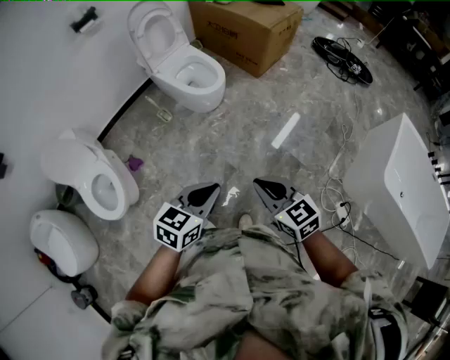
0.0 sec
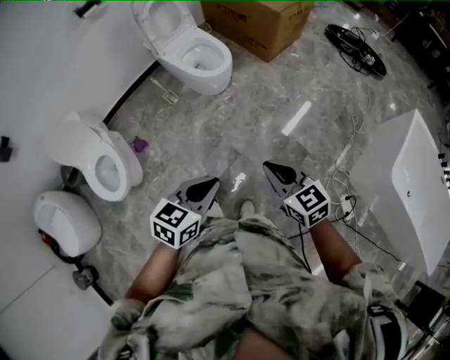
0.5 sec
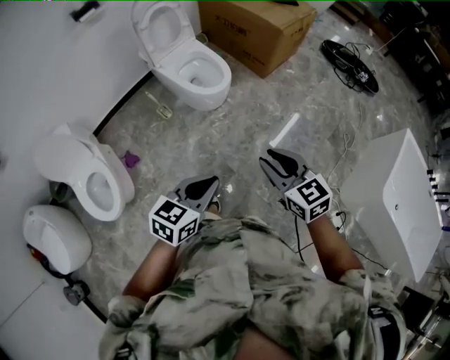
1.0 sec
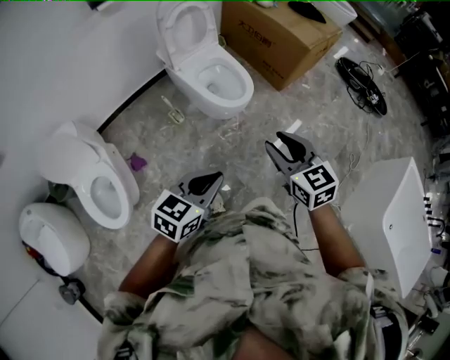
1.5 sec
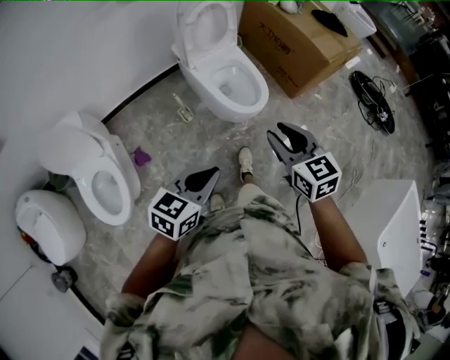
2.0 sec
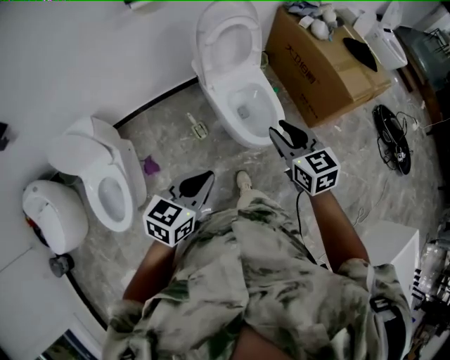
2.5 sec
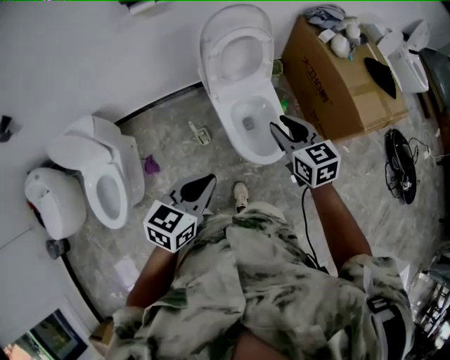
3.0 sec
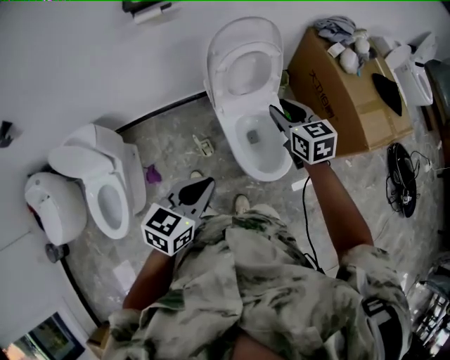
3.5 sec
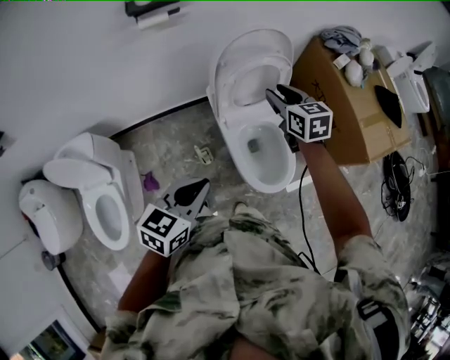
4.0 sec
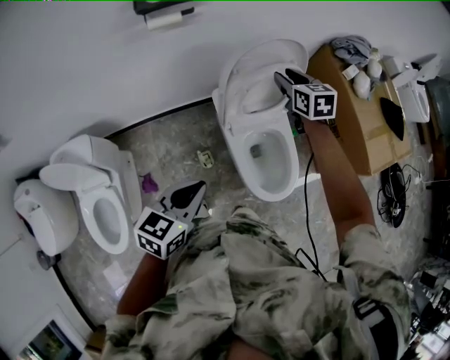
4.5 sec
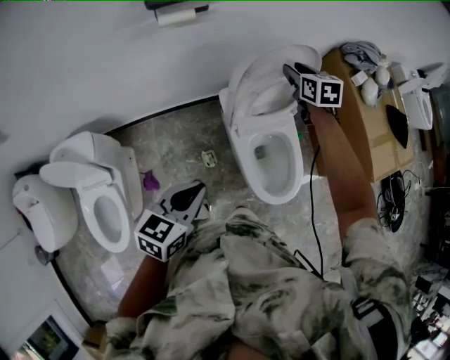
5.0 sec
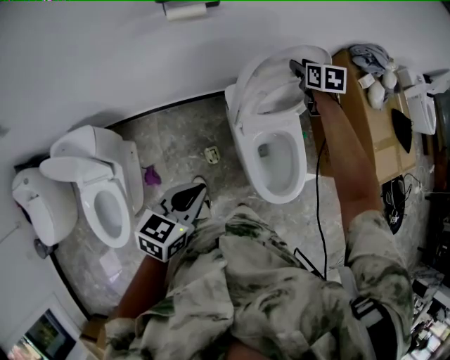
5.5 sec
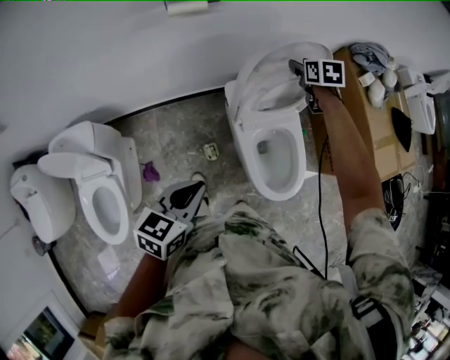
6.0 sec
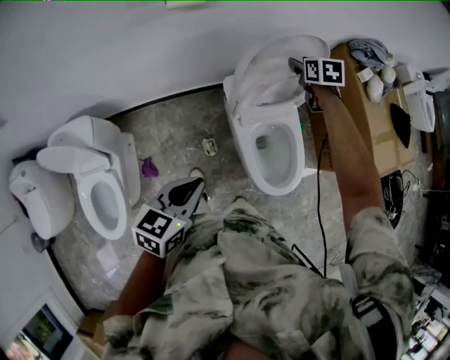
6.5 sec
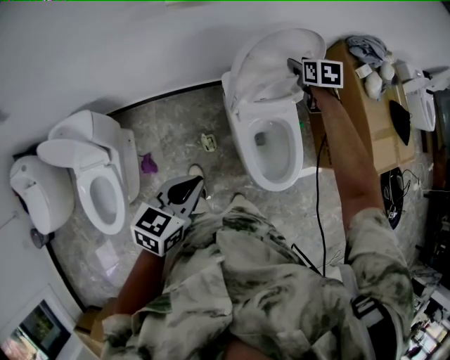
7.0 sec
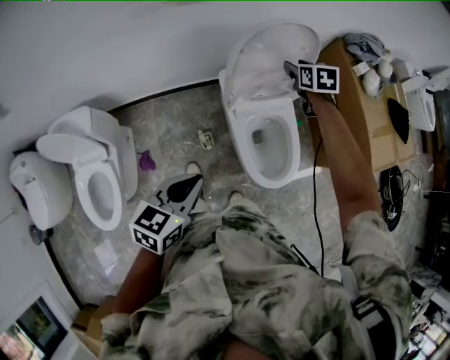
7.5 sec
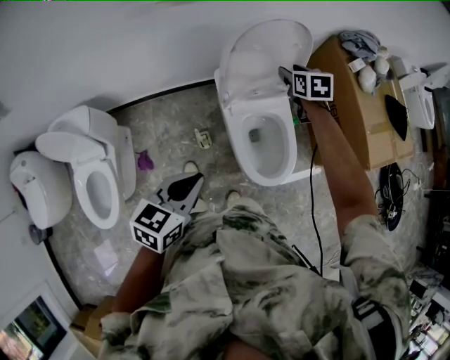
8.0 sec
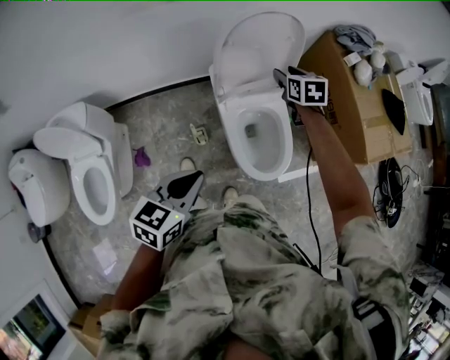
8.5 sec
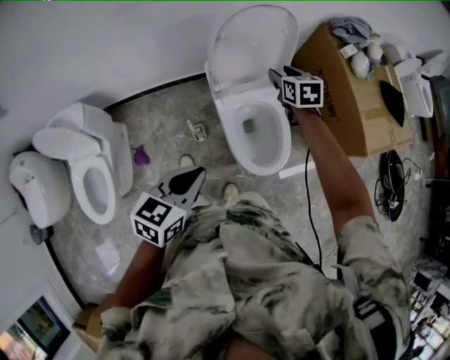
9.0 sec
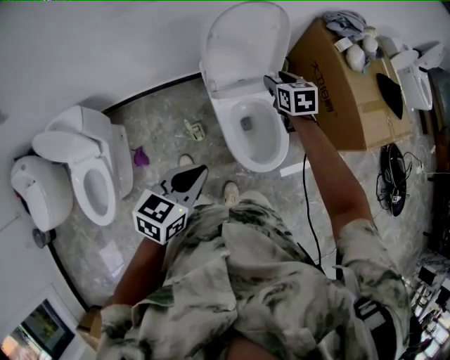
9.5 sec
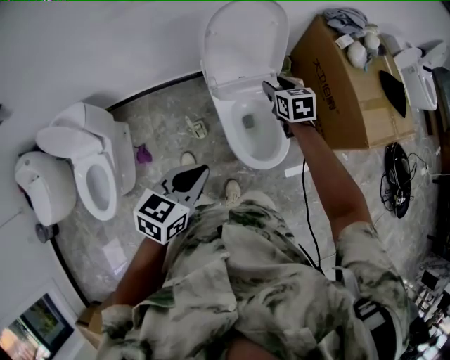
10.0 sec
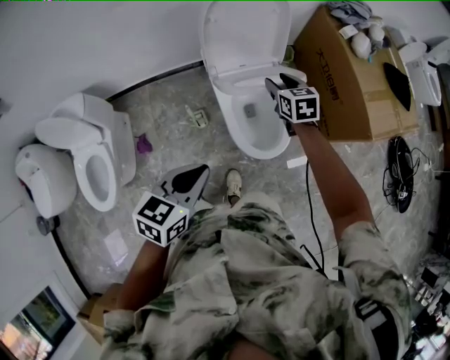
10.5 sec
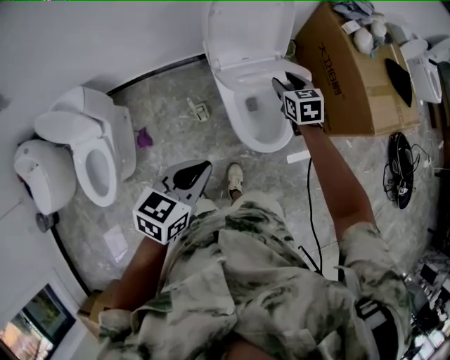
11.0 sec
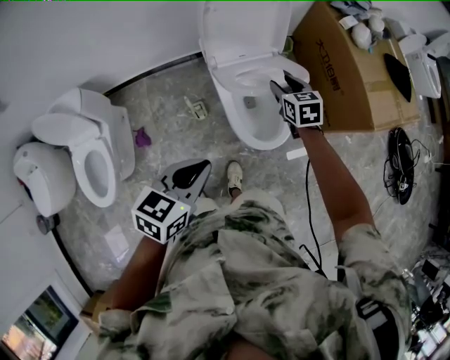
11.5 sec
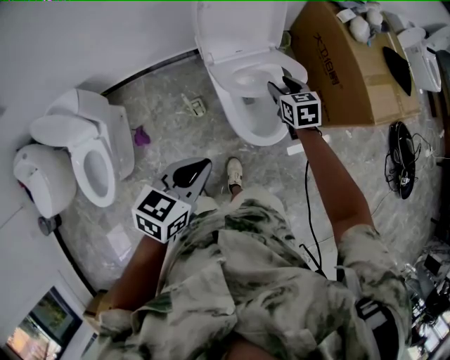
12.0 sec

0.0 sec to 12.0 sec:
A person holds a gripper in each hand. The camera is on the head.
0.0 sec to 2.0 sec: Both grippers move forward and to the left, approximately 40 cm. The right gripper opens its fingers.
2.0 sec to 4.0 sec: Both grippers are carried forward, roughly 50 cm. The left gripper turns by some 20 degrees.
4.0 sec to 6.0 sec: The right gripper heads forward and downward, covering some 25 cm. The left gripper travels to the left, forward and downward by some 15 cm.
6.0 sec to 8.0 sec: The right gripper goes roughly 15 cm backward and to the right; the left gripper travels to the right and backward by approximately 10 cm.
8.0 sec to 10.0 sec: The right gripper heads backward and to the right, covering approximately 15 cm, while the left gripper travels to the right by roughly 10 cm.
10.0 sec to 12.0 sec: The right gripper heads backward and downward, covering roughly 10 cm.

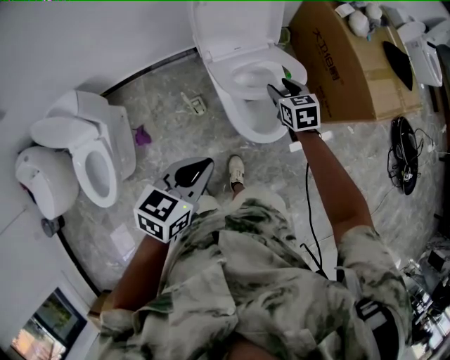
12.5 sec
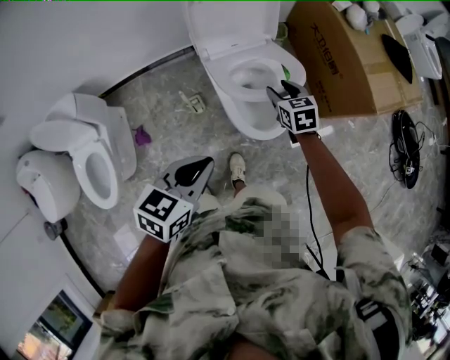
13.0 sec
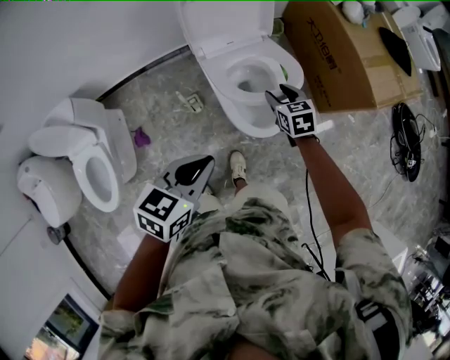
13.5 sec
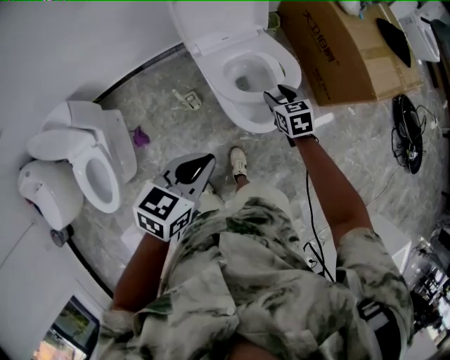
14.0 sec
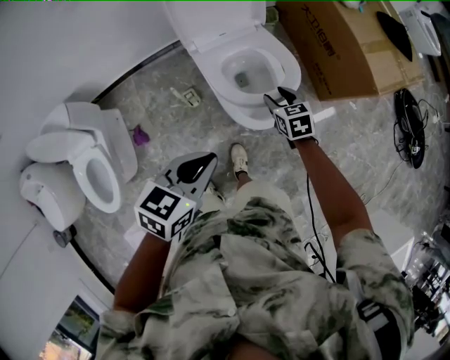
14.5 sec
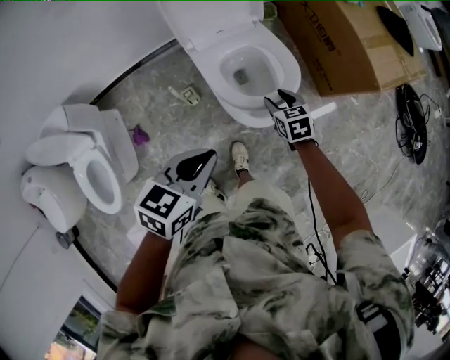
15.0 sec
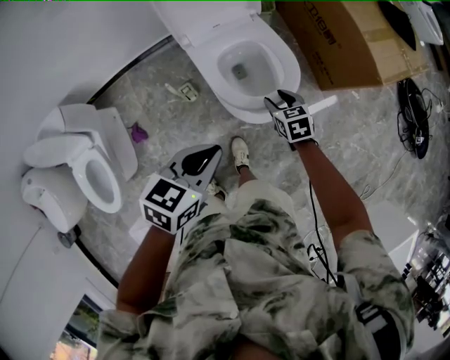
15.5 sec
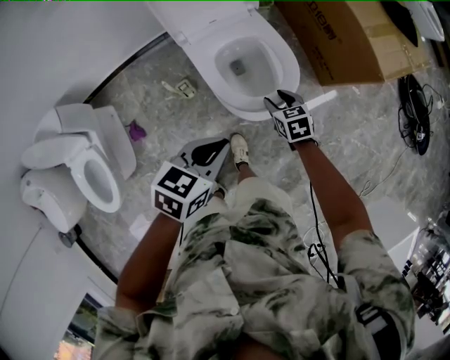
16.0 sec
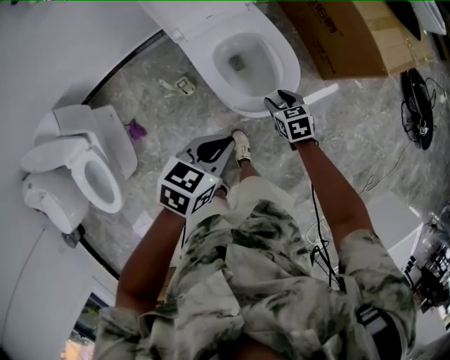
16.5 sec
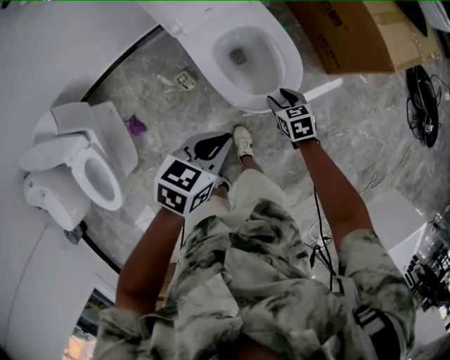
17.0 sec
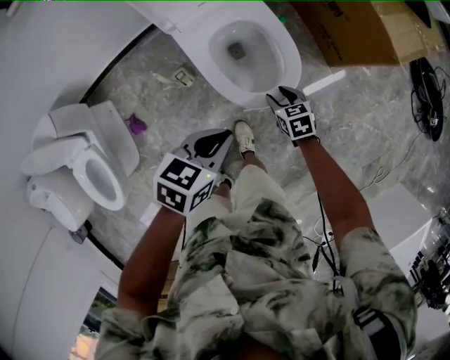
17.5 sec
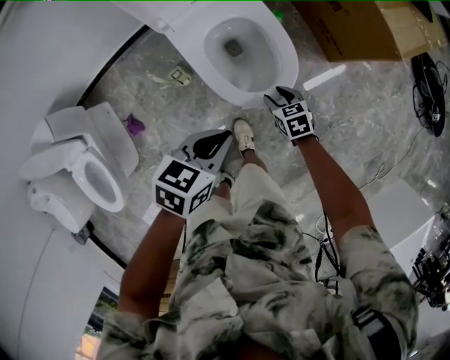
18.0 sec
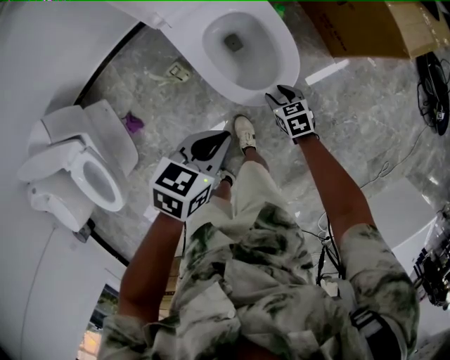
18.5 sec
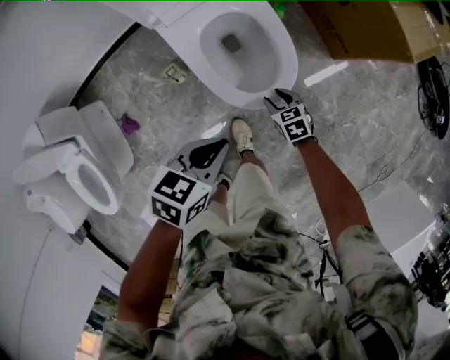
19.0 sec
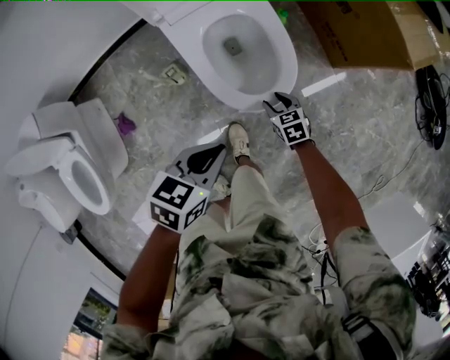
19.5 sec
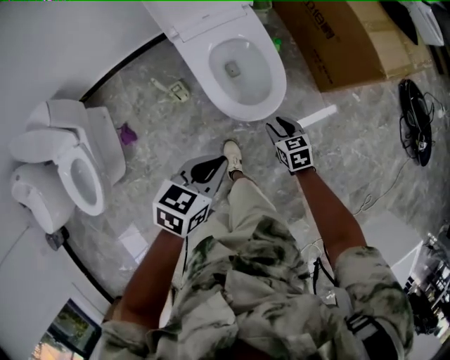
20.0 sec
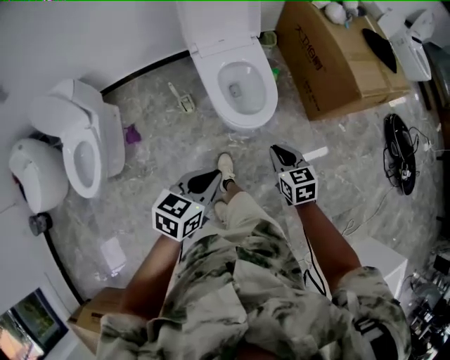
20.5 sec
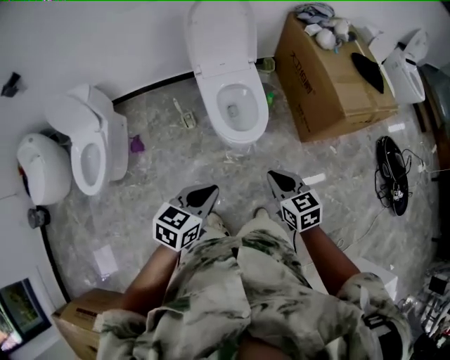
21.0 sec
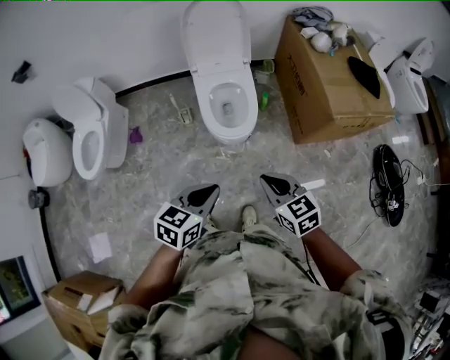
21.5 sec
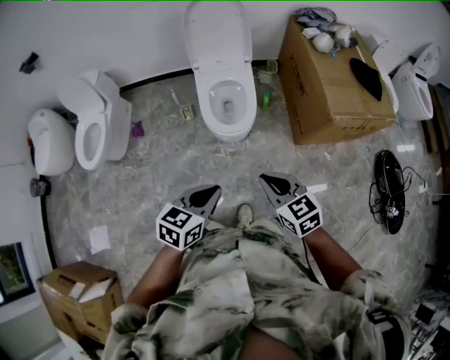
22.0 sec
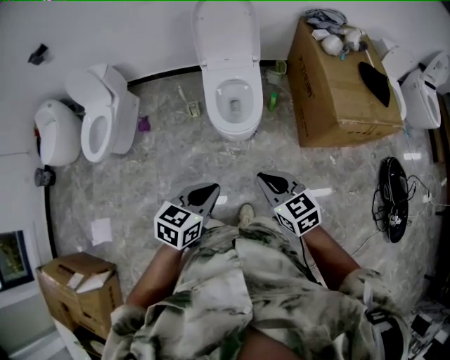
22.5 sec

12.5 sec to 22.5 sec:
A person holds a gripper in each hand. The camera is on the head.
12.5 sec to 14.5 sec: The right gripper moves downward and backward, some 10 cm.
14.5 sec to 16.5 sec: The right gripper shifts approximately 10 cm downward, while the left gripper is displaced downward and to the right by roughly 10 cm.
16.5 sec to 18.5 sec: The left gripper is displaced downward by about 10 cm. Meanwhile the right gripper shifts about 15 cm downward.
18.5 sec to 20.5 sec: The left gripper travels backward and upward by roughly 30 cm, and swivels approximately 20 degrees. The right gripper shifts about 35 cm upward and backward, and closes its fingers.
20.5 sec to 22.5 sec: The left gripper shifts some 30 cm to the right, backward and upward, while the right gripper travels upward, backward and to the right by some 30 cm, and changes its angle by about 30 degrees.

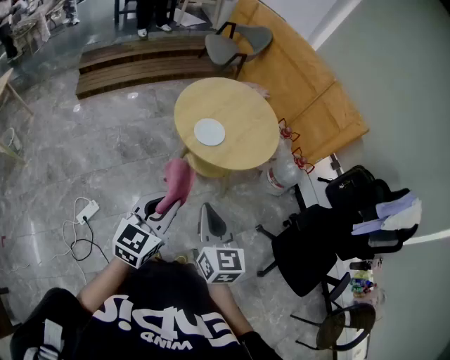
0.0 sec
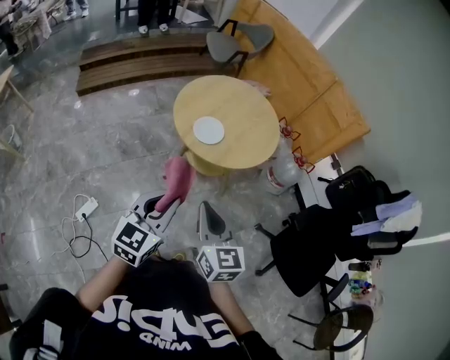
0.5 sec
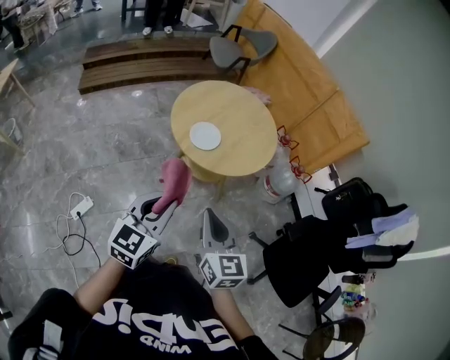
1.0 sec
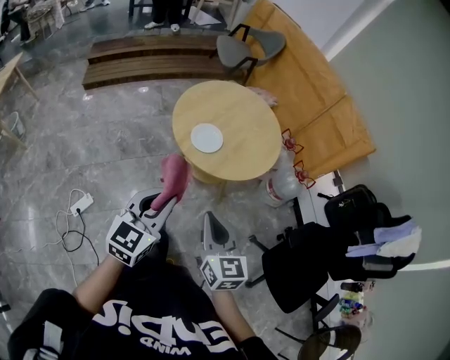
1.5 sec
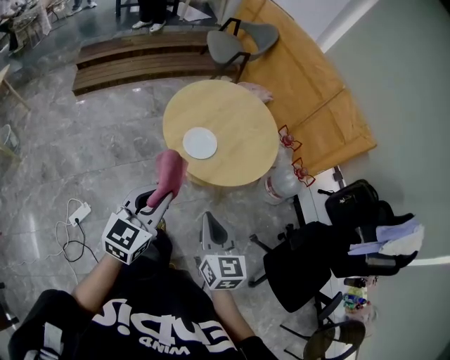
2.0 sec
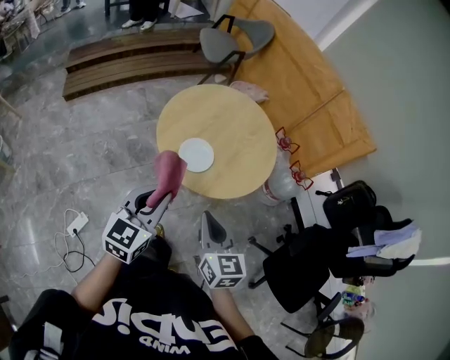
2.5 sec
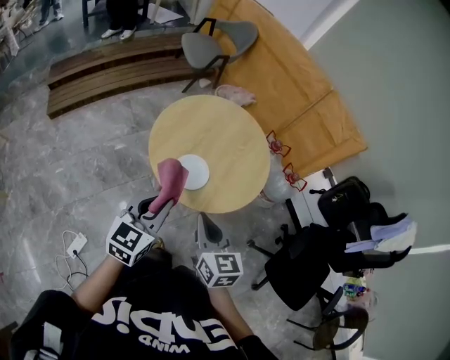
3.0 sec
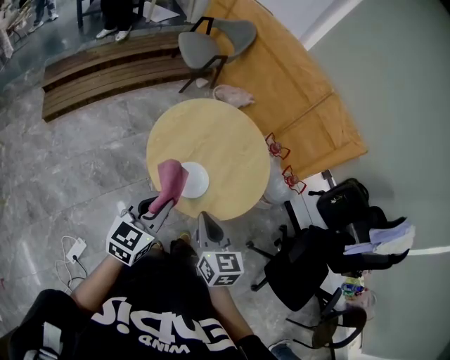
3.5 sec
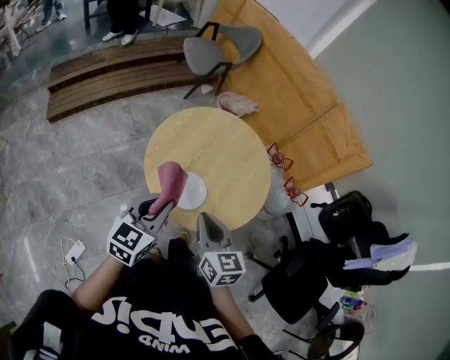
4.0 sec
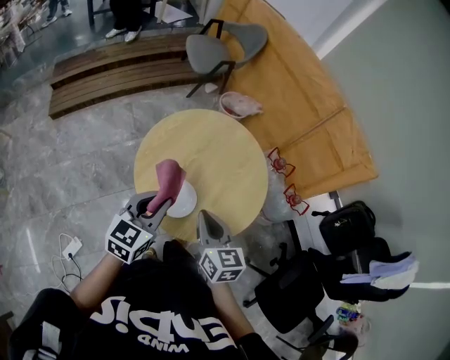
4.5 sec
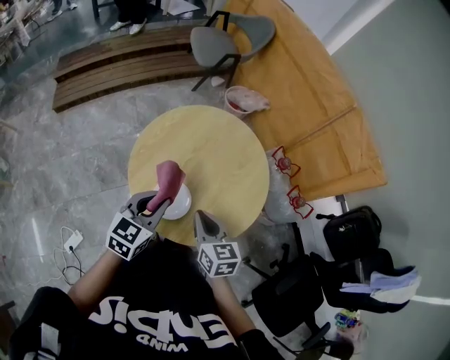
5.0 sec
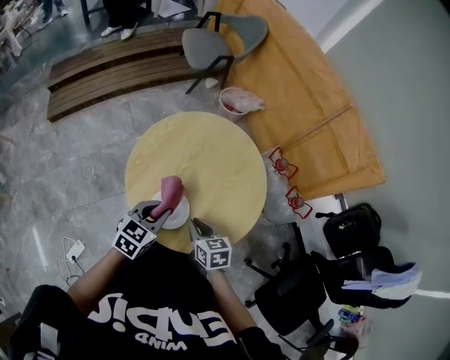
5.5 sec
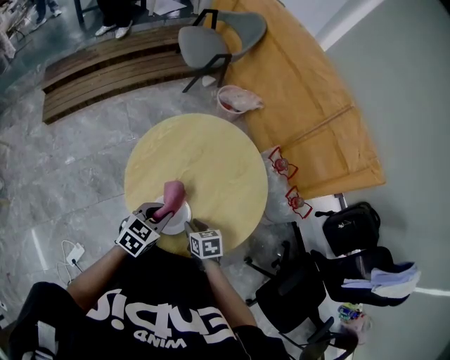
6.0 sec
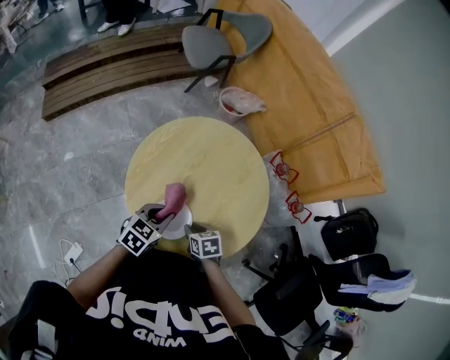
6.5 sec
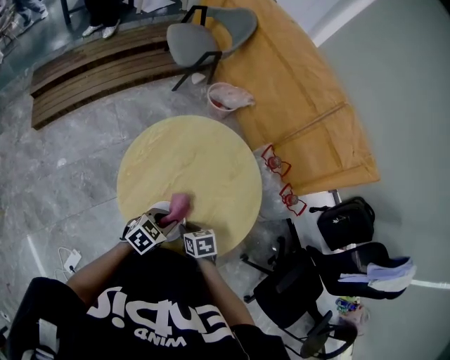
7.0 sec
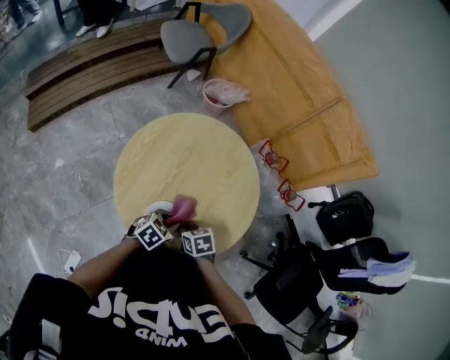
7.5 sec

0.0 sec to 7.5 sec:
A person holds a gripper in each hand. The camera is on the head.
0.0 sec to 2.0 sec: Both grippers travel together forward, roughly 10 cm.
2.0 sec to 4.0 sec: Both grippers move forward, roughly 20 cm.
4.0 sec to 5.5 sec: The left gripper moves downward, forward and to the right, roughly 15 cm. Meanwhile the right gripper moves downward and forward, about 20 cm, and rotates some 30 degrees.
5.5 sec to 7.5 sec: The left gripper moves downward and to the right, approximately 15 cm, and changes its angle by some 30 degrees. Meanwhile the right gripper shifts roughly 10 cm downward.
